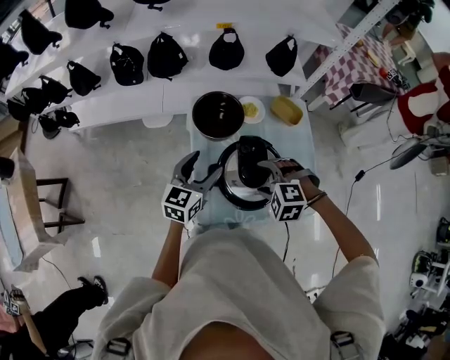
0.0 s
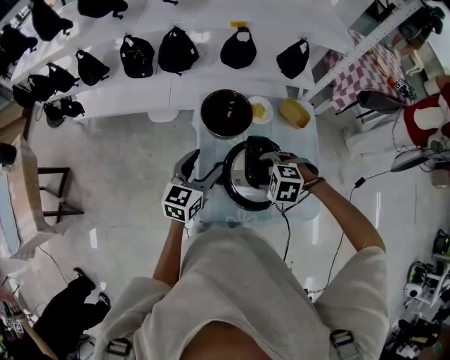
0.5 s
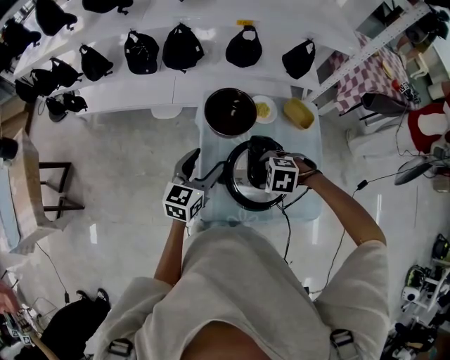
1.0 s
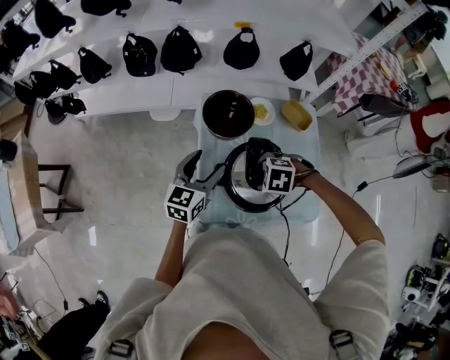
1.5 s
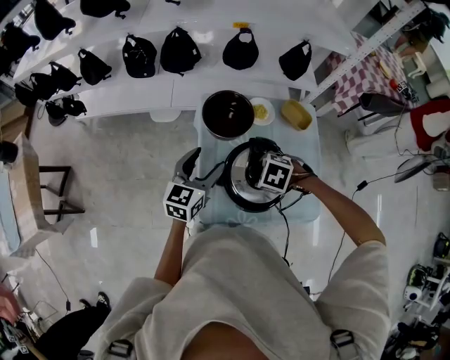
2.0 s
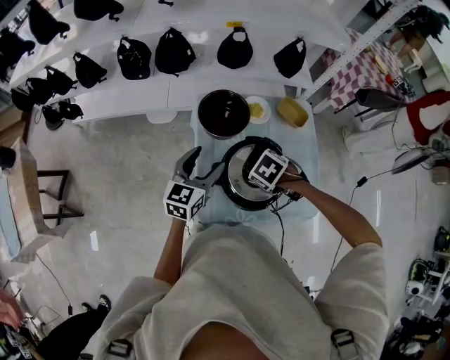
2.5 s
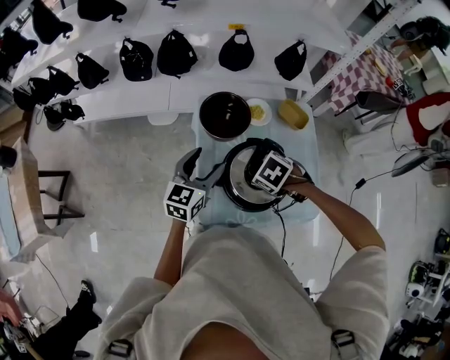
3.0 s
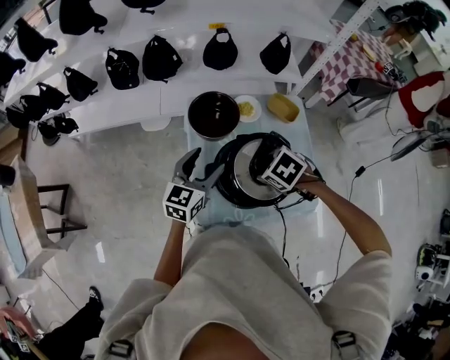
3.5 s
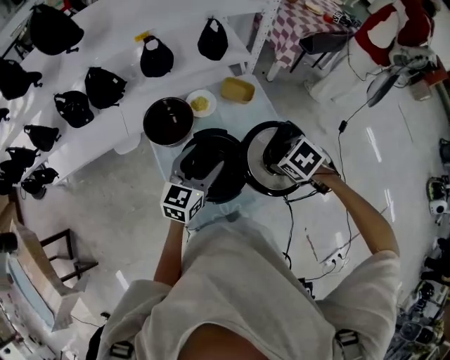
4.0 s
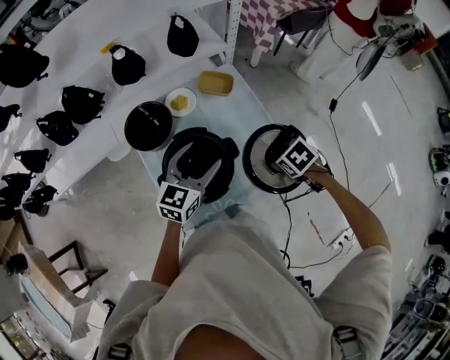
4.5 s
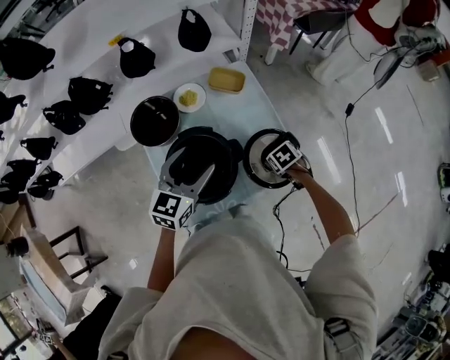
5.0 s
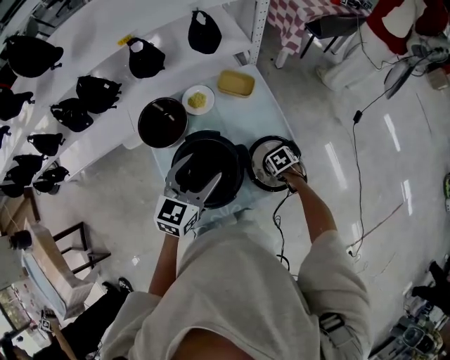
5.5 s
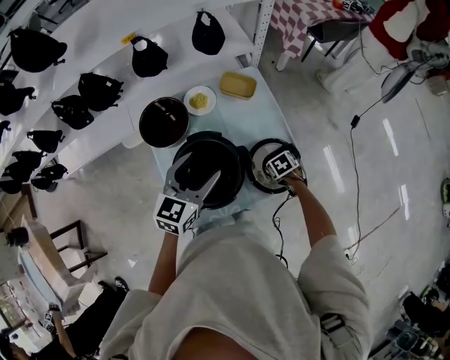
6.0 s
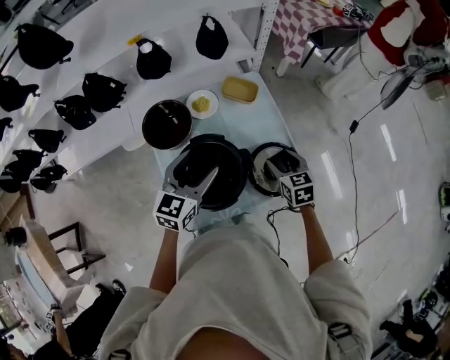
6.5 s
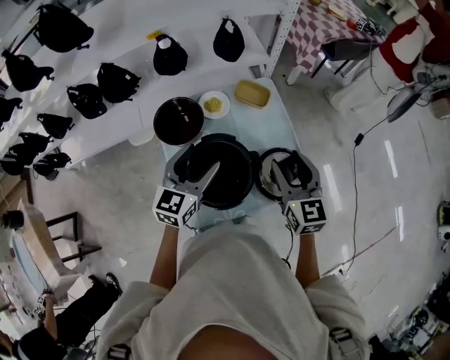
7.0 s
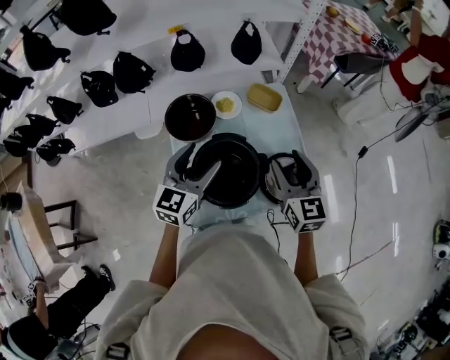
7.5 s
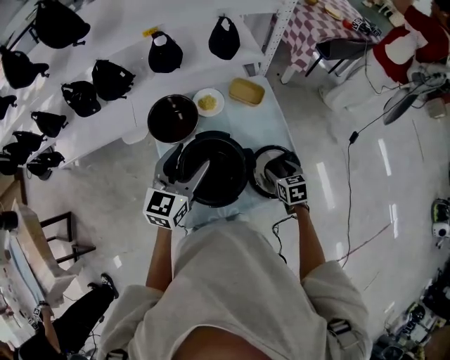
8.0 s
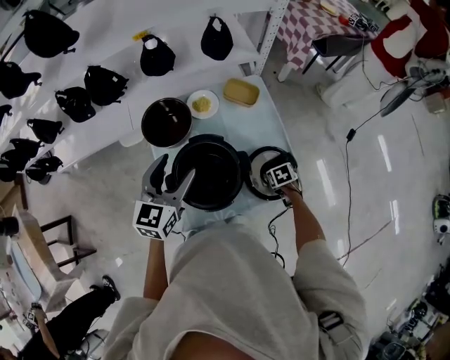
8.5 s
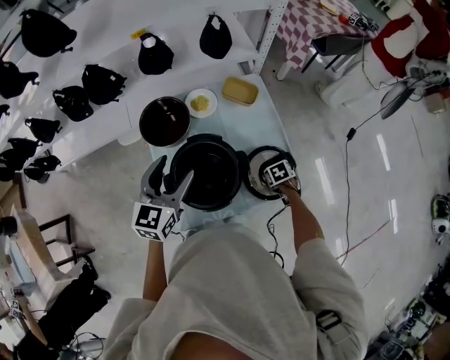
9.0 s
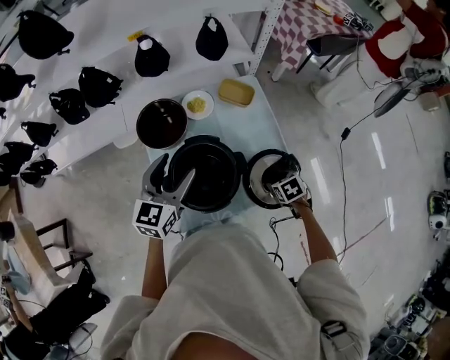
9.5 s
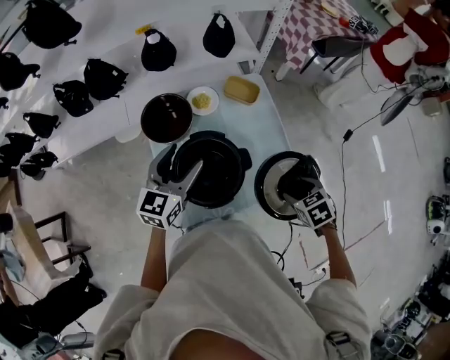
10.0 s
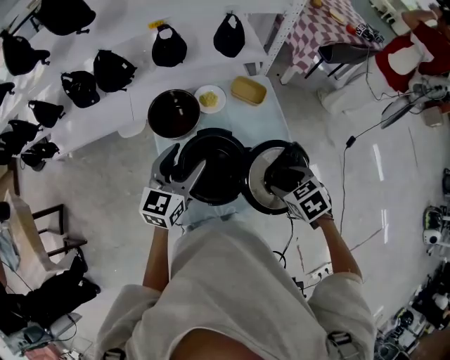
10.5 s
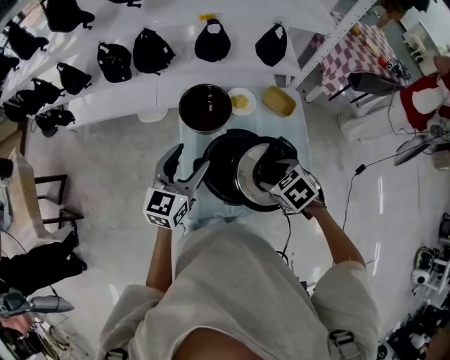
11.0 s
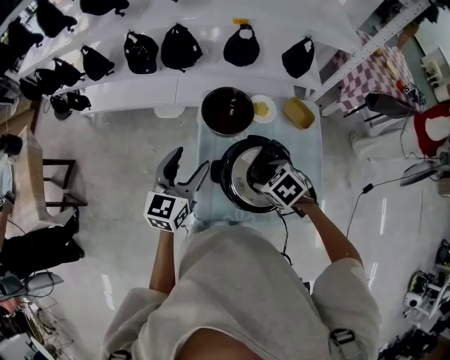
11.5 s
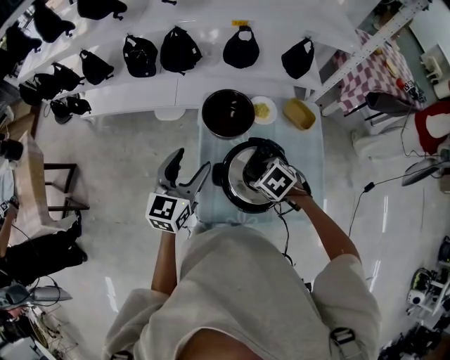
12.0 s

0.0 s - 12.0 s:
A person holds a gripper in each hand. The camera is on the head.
0.0 s - 2.0 s: The right gripper rotates about 30 degrees.
2.0 s - 4.0 s: The right gripper moves approximately 20 cm, and twists about 40 degrees clockwise, seen from behind. Meanwhile the left gripper ends up about 15 cm from where it was, and changes its angle by roughly 20 degrees.
4.0 s - 6.0 s: The right gripper travels downward by some 25 cm, and swivels some 20 degrees.
6.0 s - 8.0 s: The left gripper changes place by some 5 cm. The right gripper goes upward and returns, about 35 cm each way, and swivels roughly 30 degrees.
8.0 s - 10.0 s: The right gripper moves upward, approximately 10 cm, and swivels approximately 20 degrees.
10.0 s - 12.0 s: The right gripper moves some 30 cm, and turns by roughly 40 degrees, while the left gripper ends up about 15 cm from where it was, and swivels some 20 degrees.

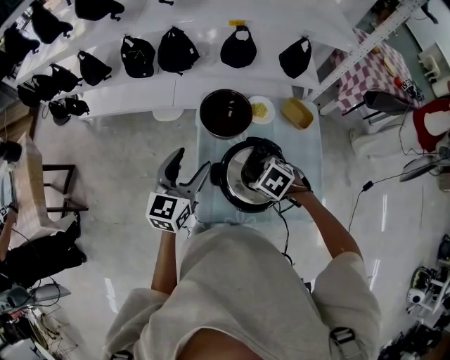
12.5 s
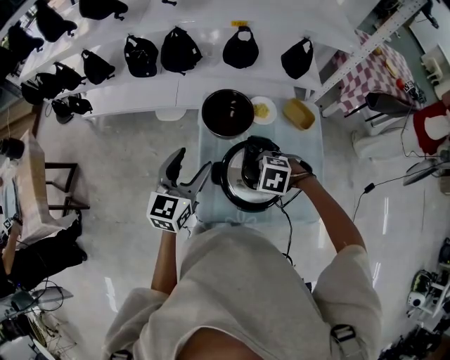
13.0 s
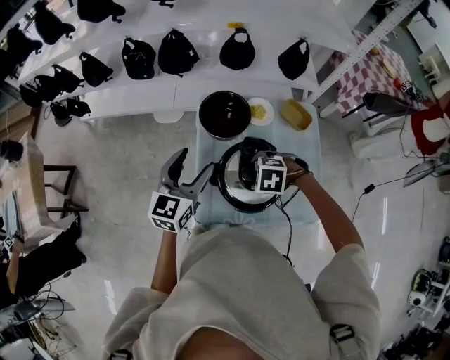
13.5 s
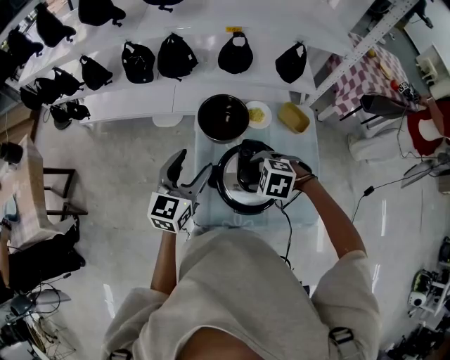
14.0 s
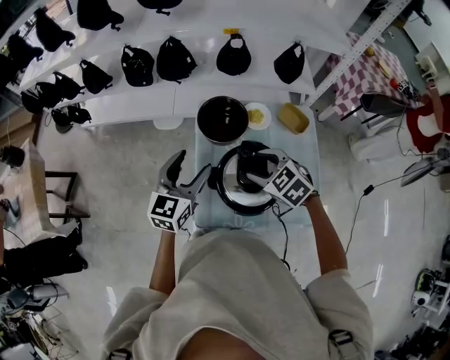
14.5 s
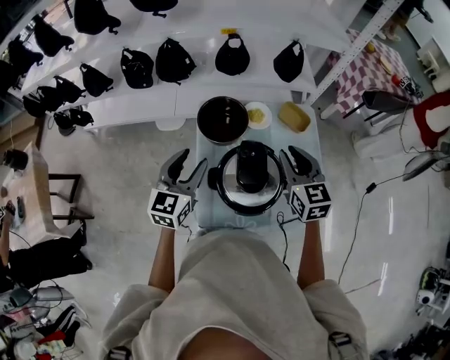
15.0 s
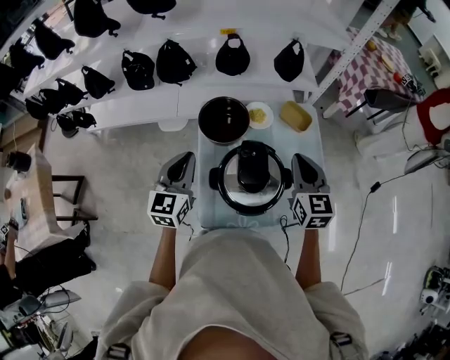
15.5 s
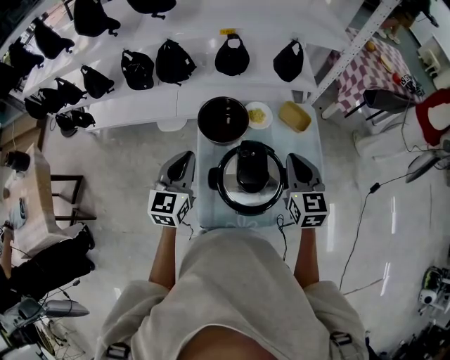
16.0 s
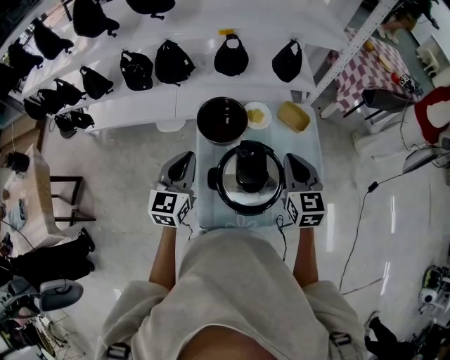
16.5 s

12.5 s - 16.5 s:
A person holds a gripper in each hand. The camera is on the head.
12.5 s - 14.5 s: The right gripper goes some 10 cm upward, and rotates some 30 degrees.
14.5 s - 16.5 s: The right gripper heads to the right and upward, covering about 10 cm, swivels roughly 50 degrees, and closes up, while the left gripper closes its fingers.

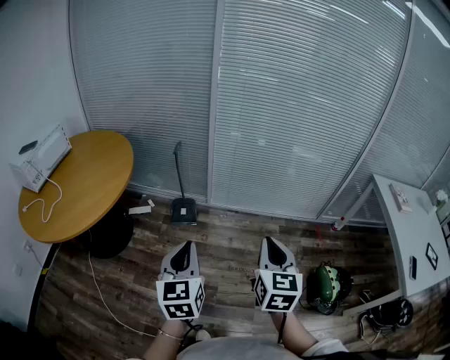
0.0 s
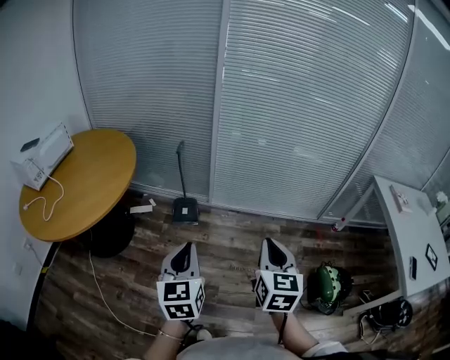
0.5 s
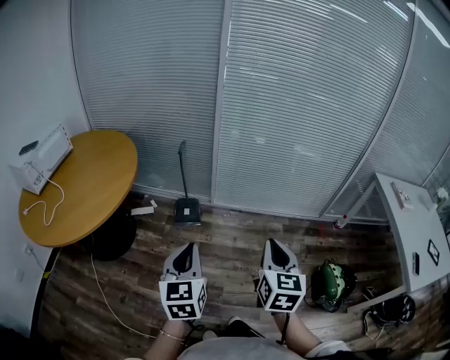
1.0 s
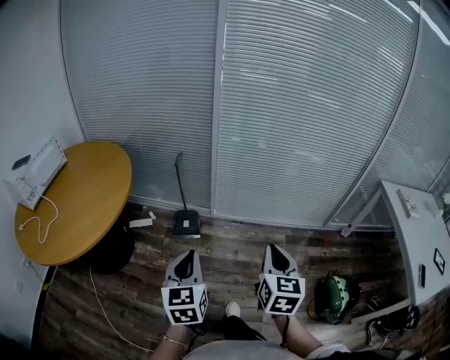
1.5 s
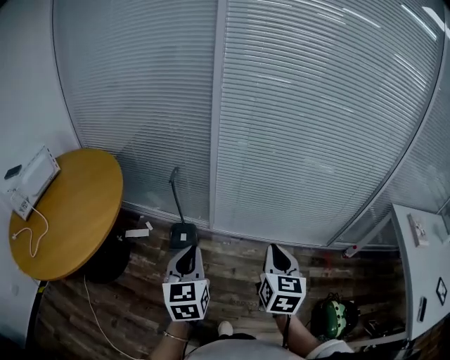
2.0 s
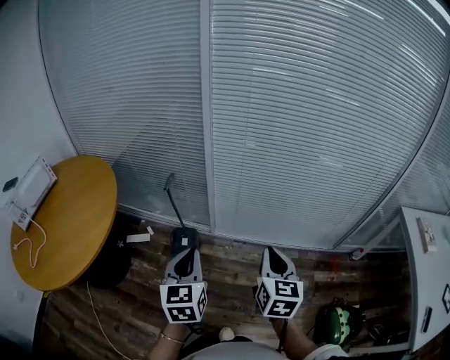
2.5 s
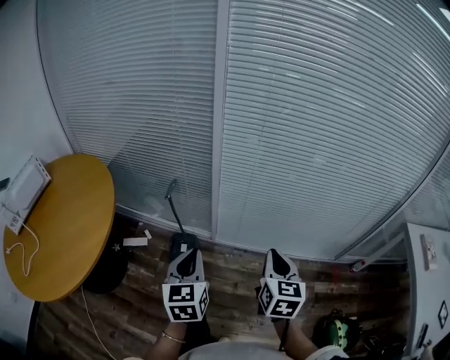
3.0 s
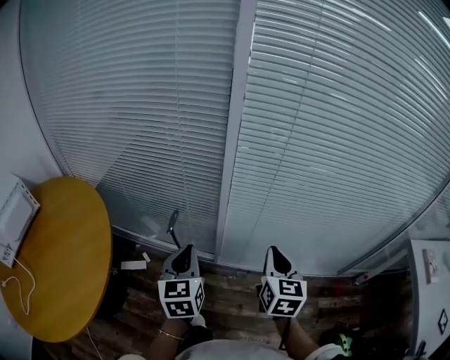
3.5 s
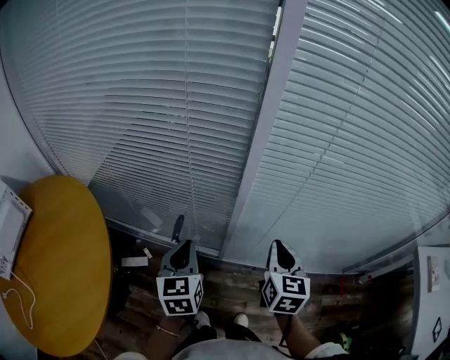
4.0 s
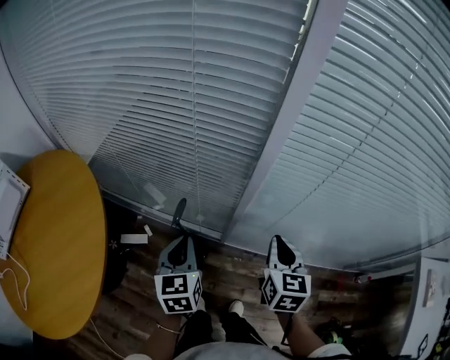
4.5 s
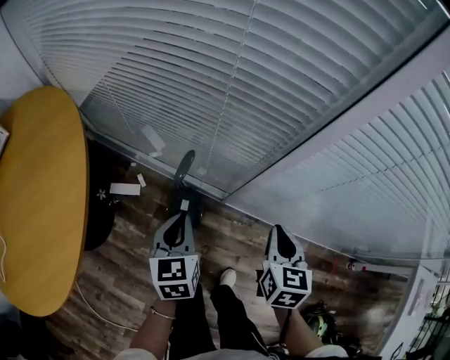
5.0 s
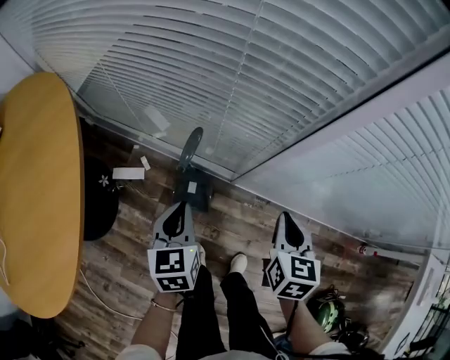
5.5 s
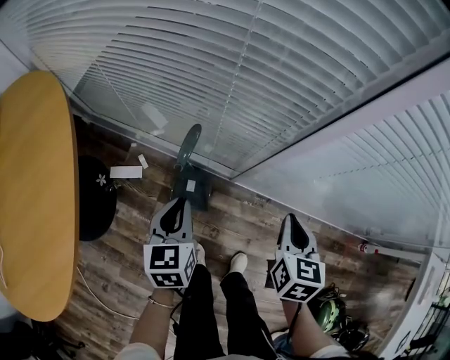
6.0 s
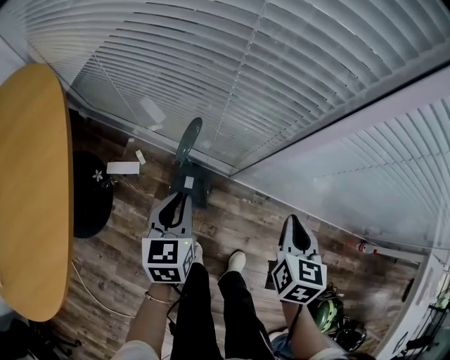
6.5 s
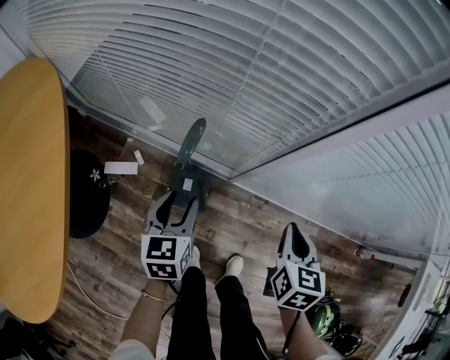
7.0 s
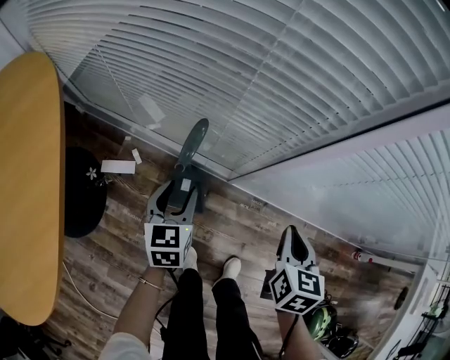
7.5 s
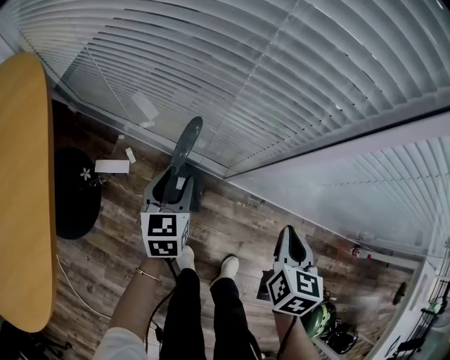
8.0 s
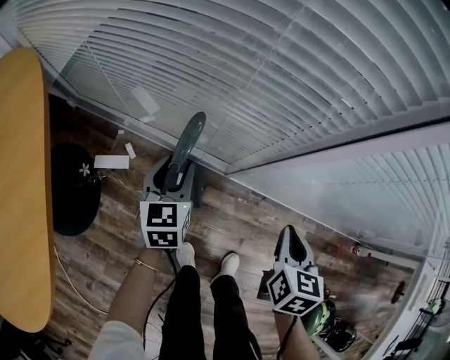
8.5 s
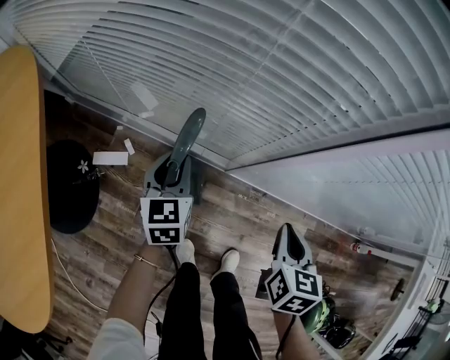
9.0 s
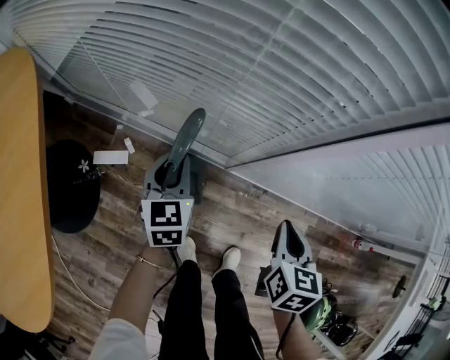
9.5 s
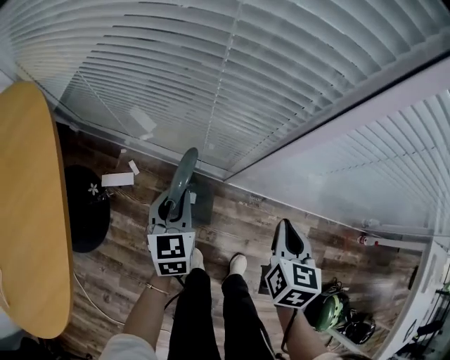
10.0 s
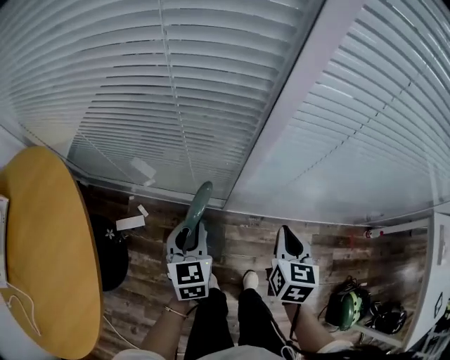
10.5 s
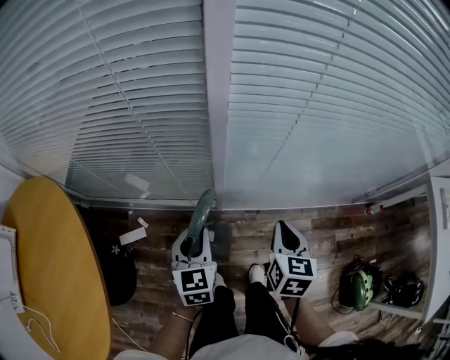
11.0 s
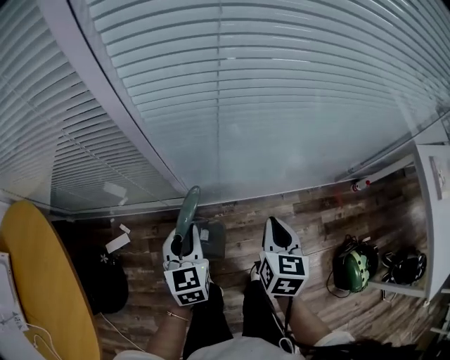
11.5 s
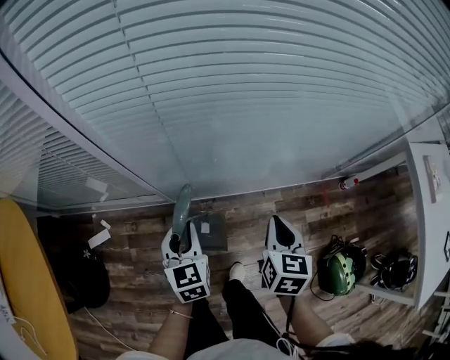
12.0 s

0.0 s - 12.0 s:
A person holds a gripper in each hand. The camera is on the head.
0.0 s - 2.0 s: Both grippers move forward, roughly 20 cm.
2.0 s - 4.0 s: Both grippers travel together forward, approximately 35 cm.
4.0 s - 6.0 s: The two grippers go some 20 cm downward.
6.0 s - 8.0 s: The left gripper goes roughly 10 cm downward and forward, and opens up.
8.0 s - 10.0 s: The left gripper ends up some 5 cm from where it was, and closes its fingers.
10.0 s - 12.0 s: The grippers both shift to the right by roughly 30 cm.
